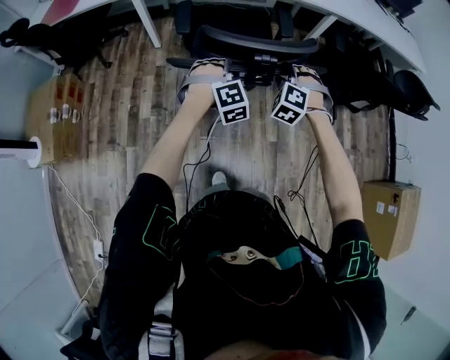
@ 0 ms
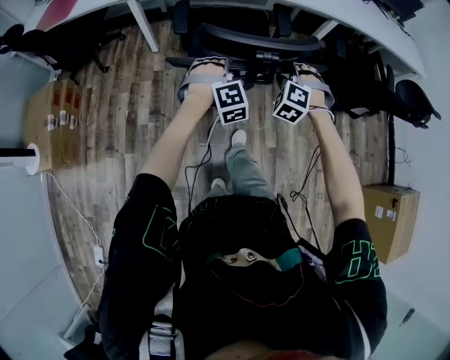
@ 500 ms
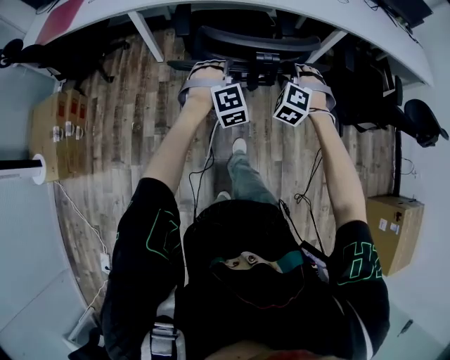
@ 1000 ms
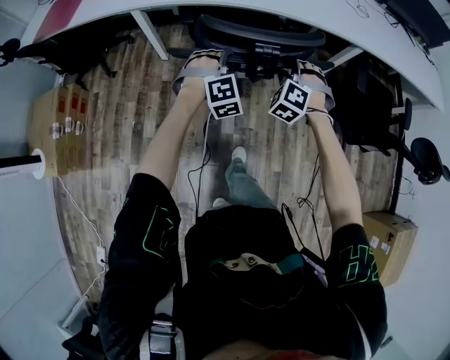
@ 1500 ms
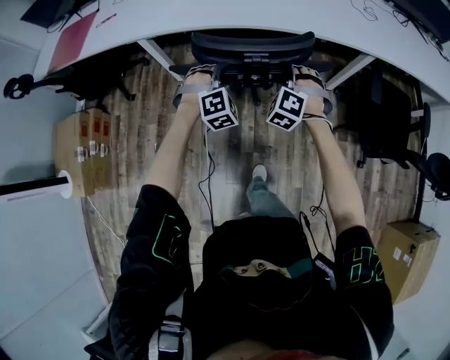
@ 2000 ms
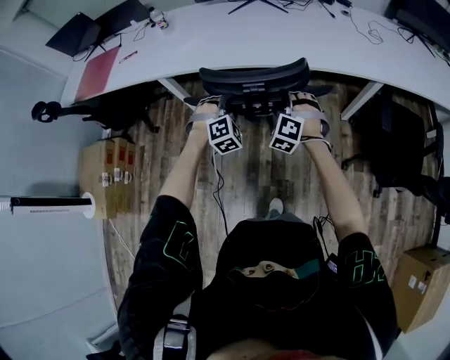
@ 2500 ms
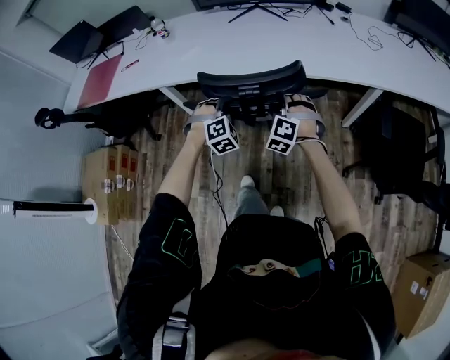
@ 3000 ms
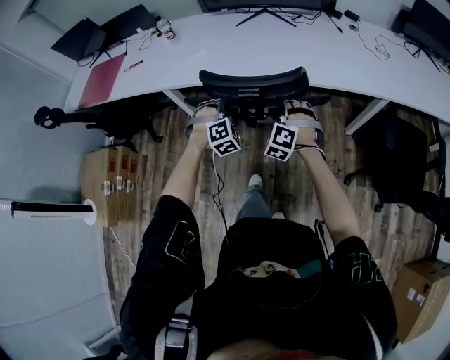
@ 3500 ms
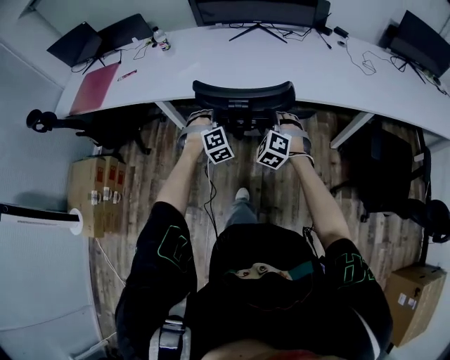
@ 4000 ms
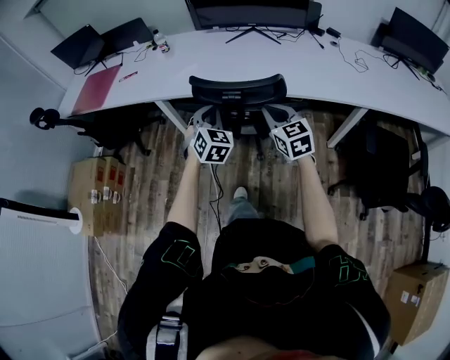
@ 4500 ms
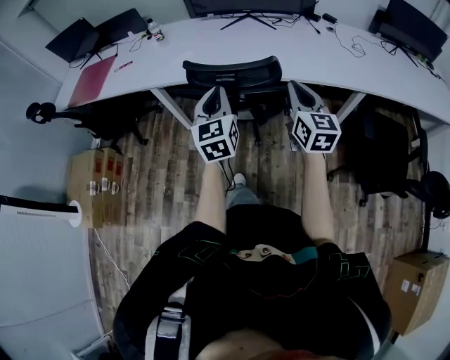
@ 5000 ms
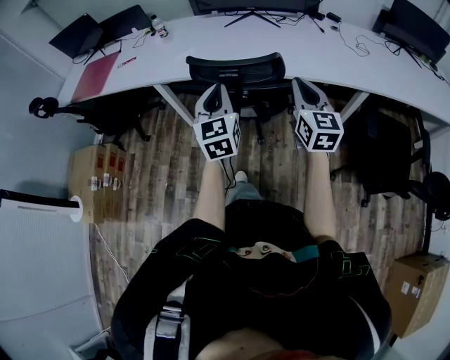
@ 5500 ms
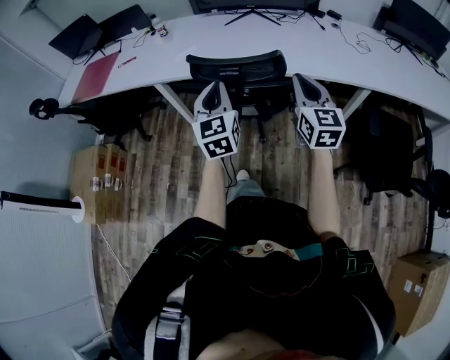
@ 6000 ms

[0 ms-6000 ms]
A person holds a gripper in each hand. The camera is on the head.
0 ms to 2000 ms: Both grippers move forward, some 35 cm.
2000 ms to 4000 ms: Both grippers move forward and to the left, about 10 cm.
4000 ms to 6000 ms: The left gripper heads upward and backward, covering about 25 cm, twists approximately 70 degrees counterclockwise, seen from behind, and closes its fingers; the right gripper moves upward, to the right and backward, roughly 25 cm, twists roughly 60 degrees clockwise, seen from behind, and closes its fingers.

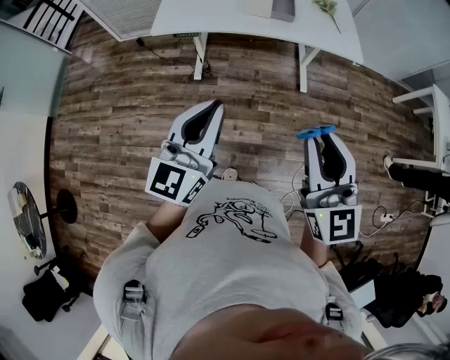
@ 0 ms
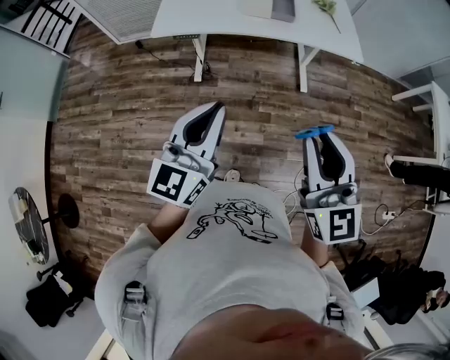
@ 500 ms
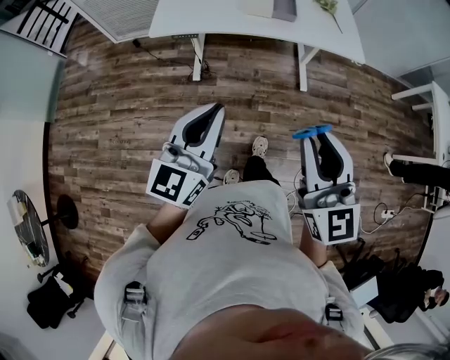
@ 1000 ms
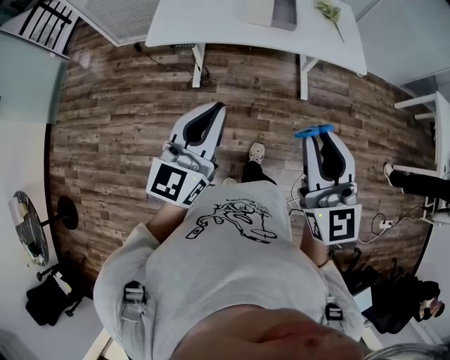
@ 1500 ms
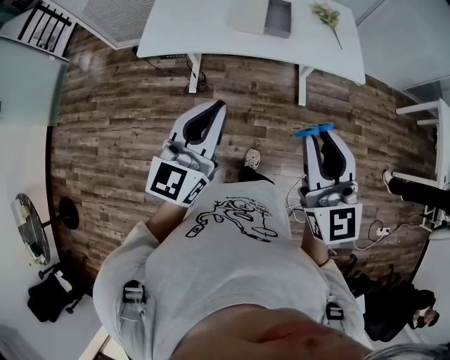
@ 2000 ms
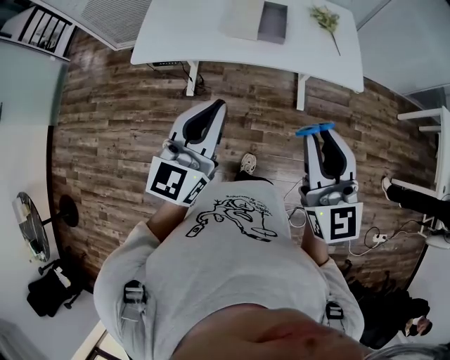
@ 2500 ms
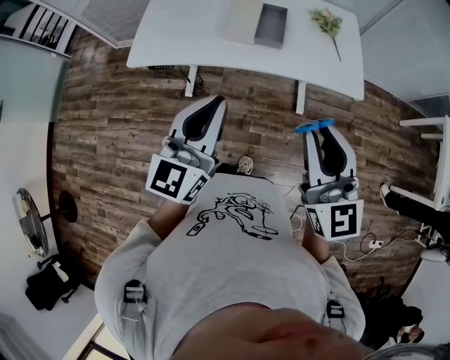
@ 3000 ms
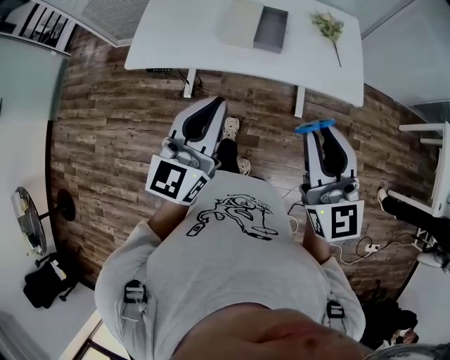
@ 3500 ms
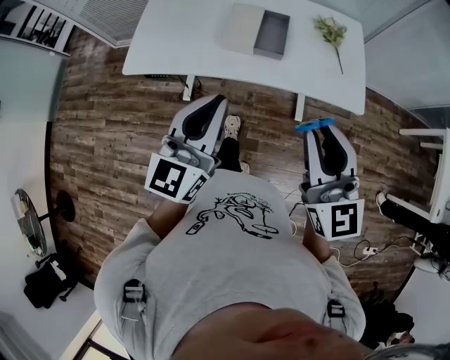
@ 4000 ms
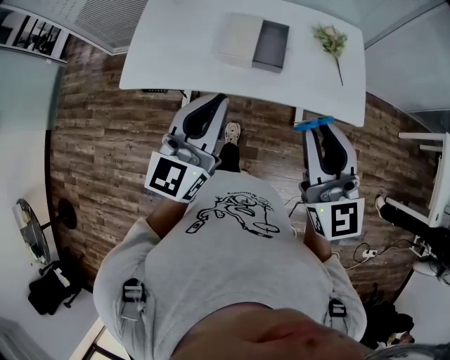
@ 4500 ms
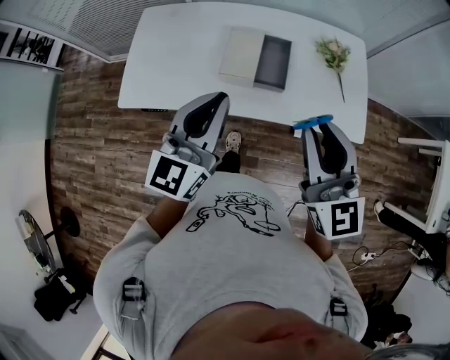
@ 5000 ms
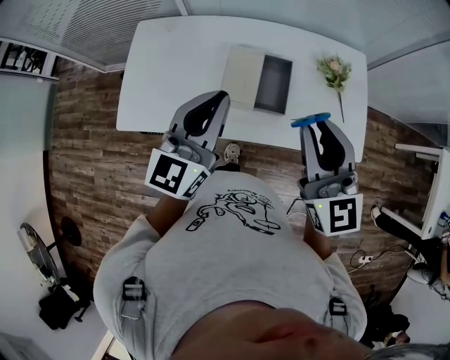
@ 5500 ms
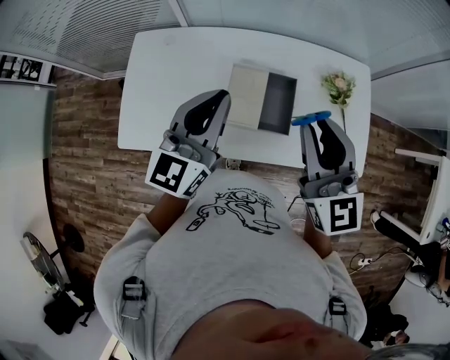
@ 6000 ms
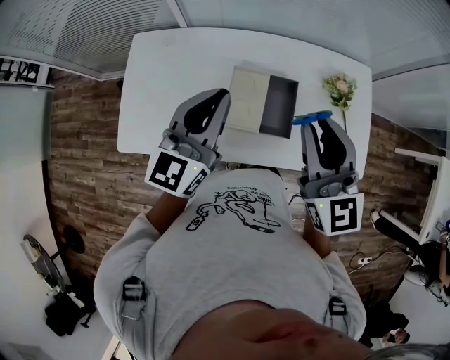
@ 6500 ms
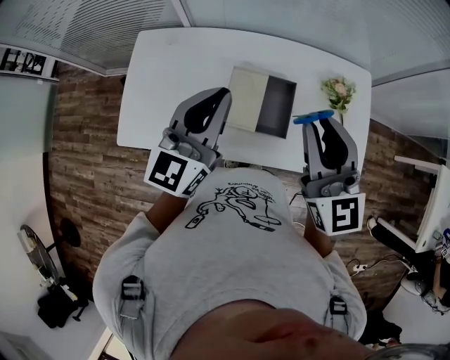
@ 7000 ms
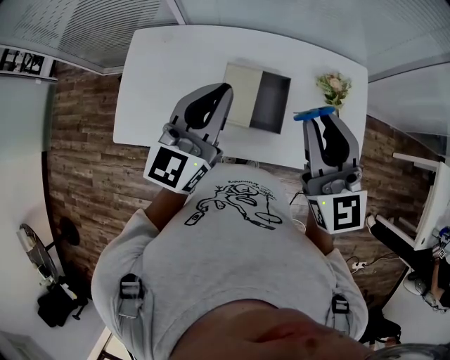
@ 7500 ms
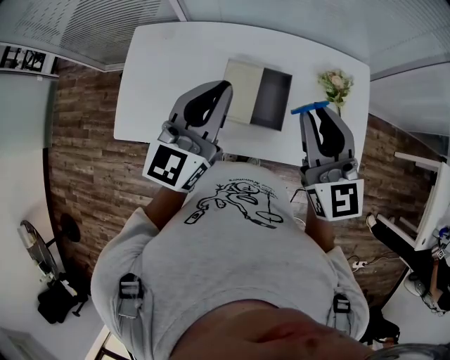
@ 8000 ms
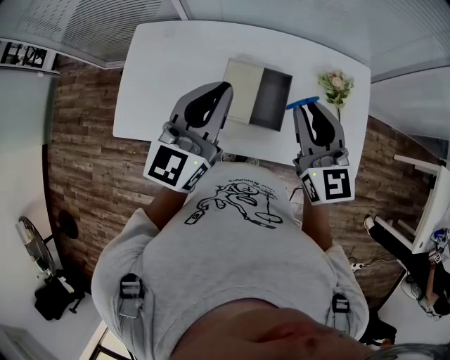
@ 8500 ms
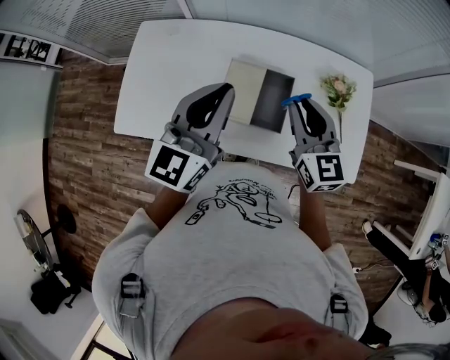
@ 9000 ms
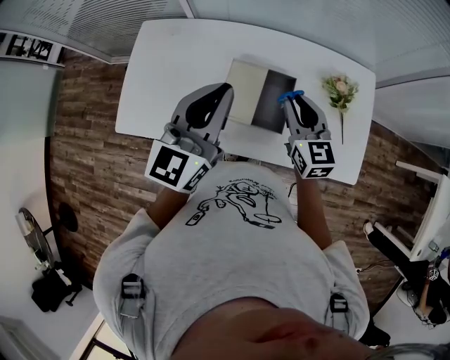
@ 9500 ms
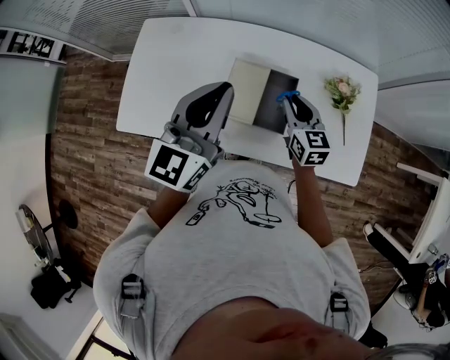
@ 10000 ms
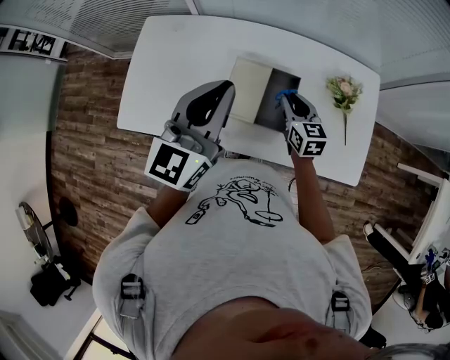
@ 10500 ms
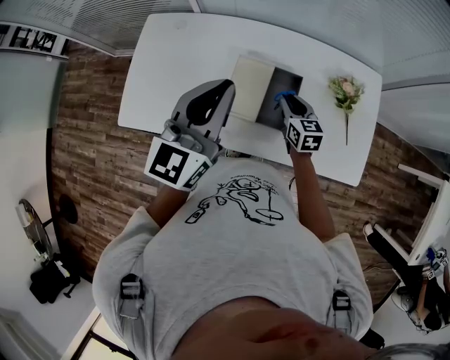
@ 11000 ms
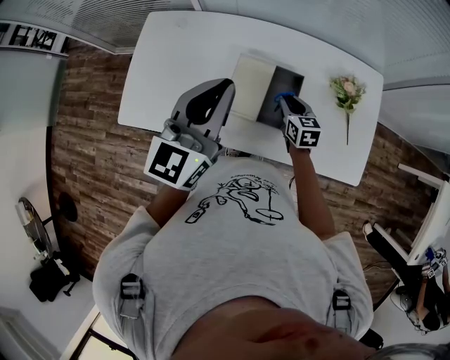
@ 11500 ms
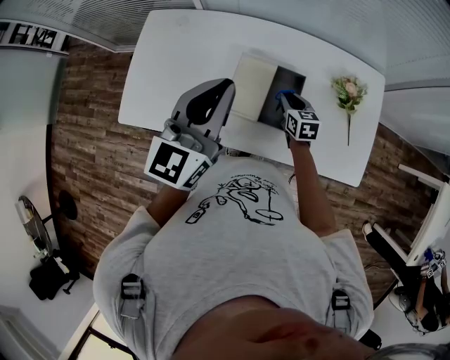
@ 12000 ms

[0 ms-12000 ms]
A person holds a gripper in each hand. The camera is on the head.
0 ms to 2000 ms: The grippers both shift forward by about 15 cm.
2000 ms to 4000 ms: Both grippers move forward and to the right, approximately 20 cm.
4000 ms to 6000 ms: The grippers both shift forward by approximately 35 cm.
6000 ms to 8000 ms: The grippers stay close to where they were, moving slightly.
8000 ms to 10000 ms: The right gripper is displaced downward and forward by about 25 cm, and changes its angle by roughly 20 degrees.
10000 ms to 12000 ms: The right gripper moves downward, about 15 cm.

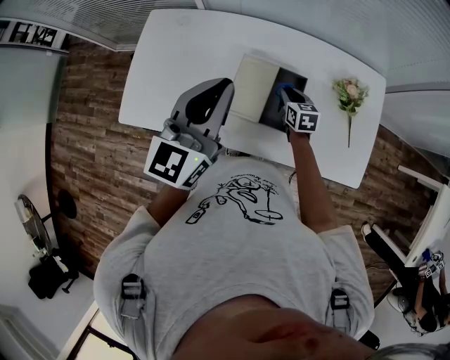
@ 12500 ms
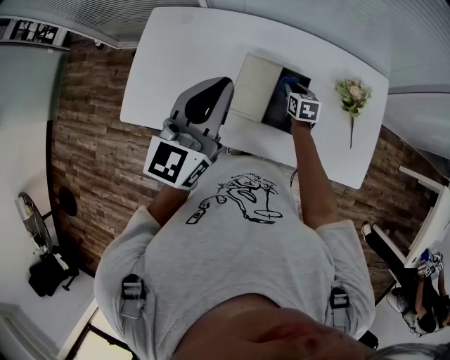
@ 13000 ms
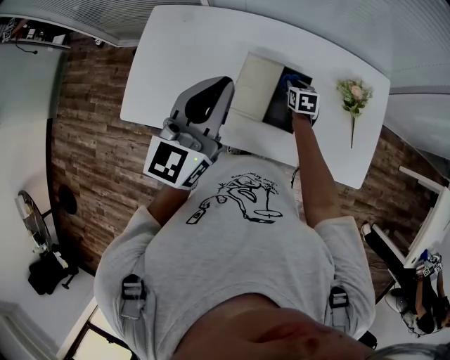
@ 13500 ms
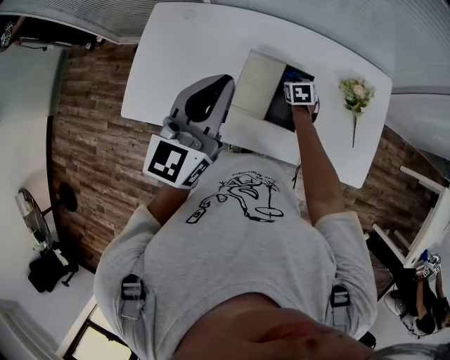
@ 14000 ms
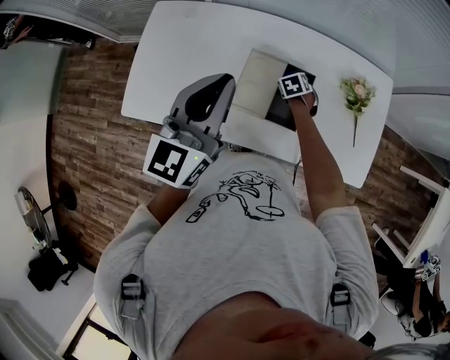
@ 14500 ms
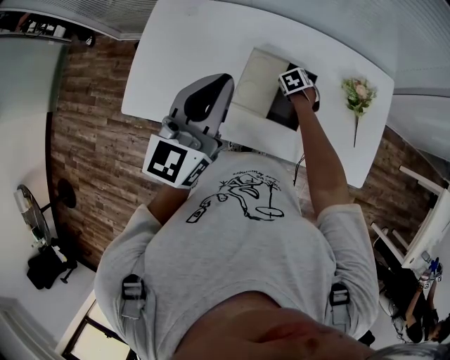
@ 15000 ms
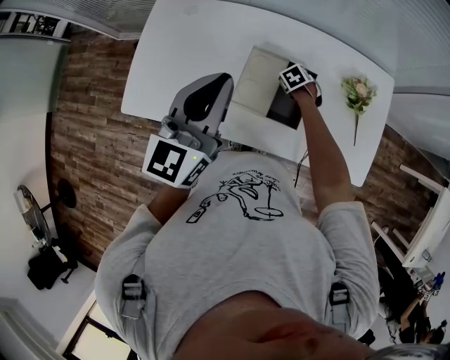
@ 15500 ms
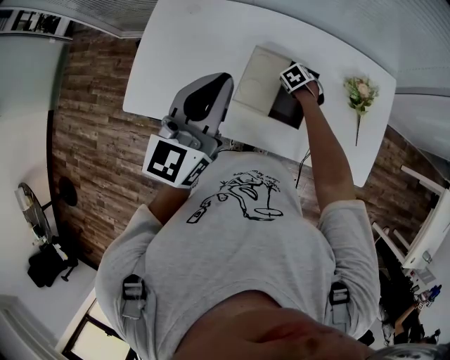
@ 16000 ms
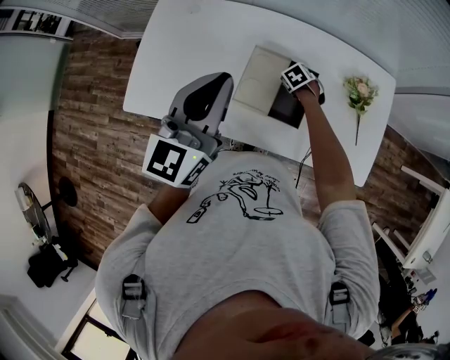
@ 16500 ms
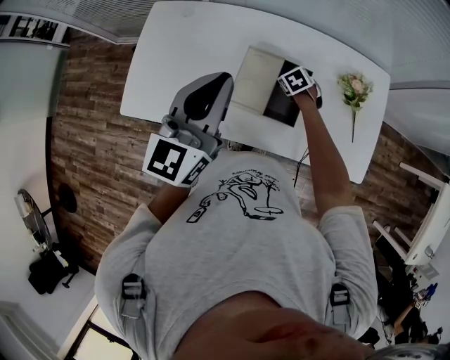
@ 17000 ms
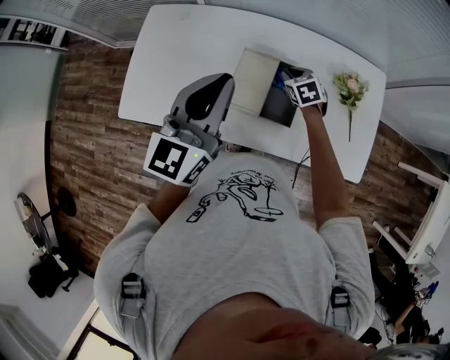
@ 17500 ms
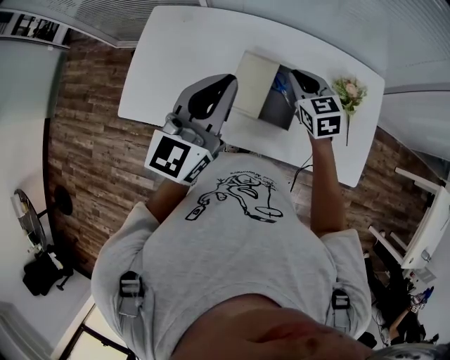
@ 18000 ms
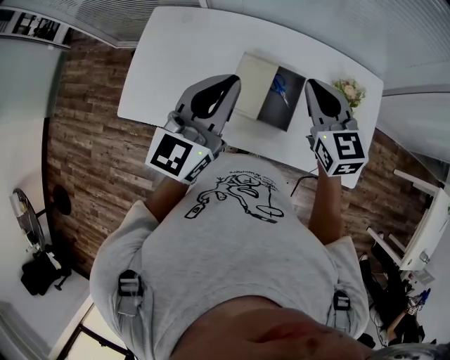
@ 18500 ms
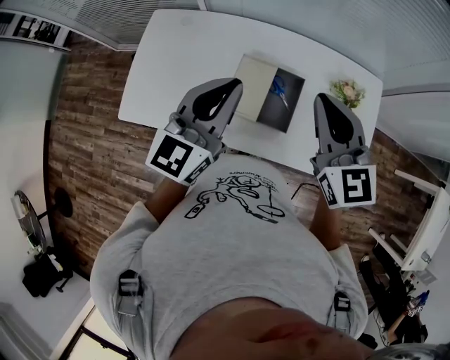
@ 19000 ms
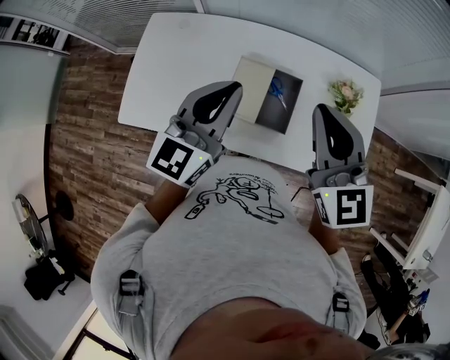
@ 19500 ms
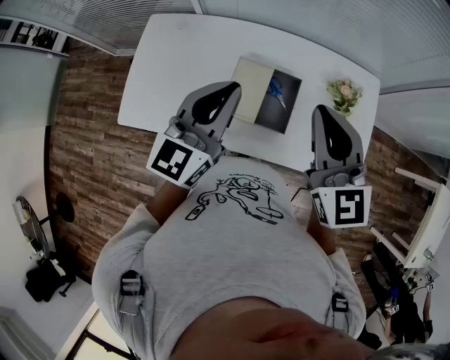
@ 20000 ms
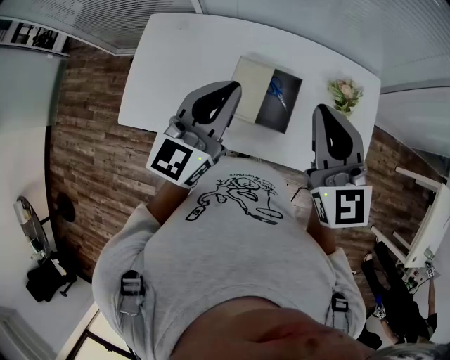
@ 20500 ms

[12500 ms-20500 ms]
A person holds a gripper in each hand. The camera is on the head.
12500 ms to 14500 ms: The right gripper travels downward by about 10 cm, and swivels about 30 degrees.
14500 ms to 16500 ms: The grippers move only a little.
16500 ms to 18500 ms: The right gripper shifts roughly 40 cm upward, points its fingers approximately 50 degrees further upward, and closes up.
18500 ms to 20500 ms: The right gripper moves upward and backward, some 10 cm.

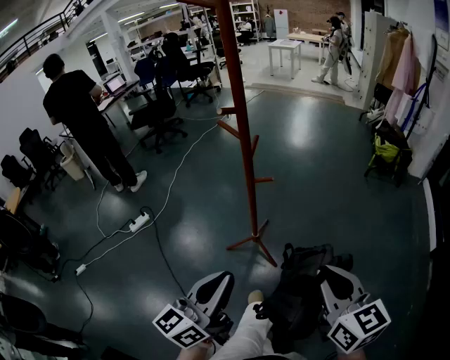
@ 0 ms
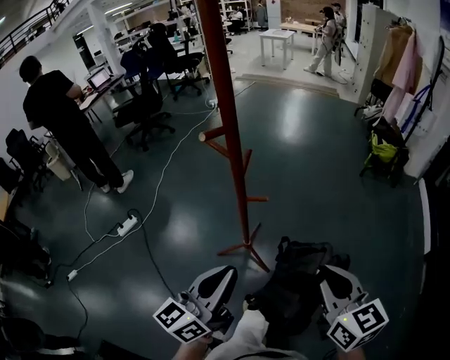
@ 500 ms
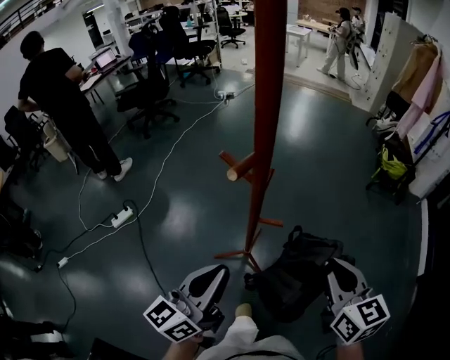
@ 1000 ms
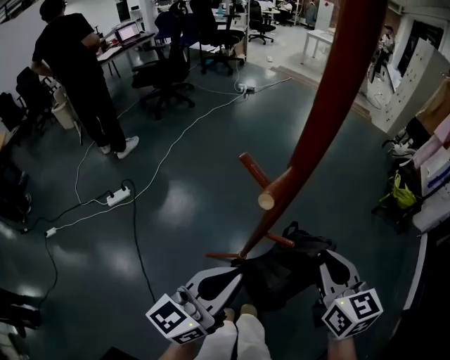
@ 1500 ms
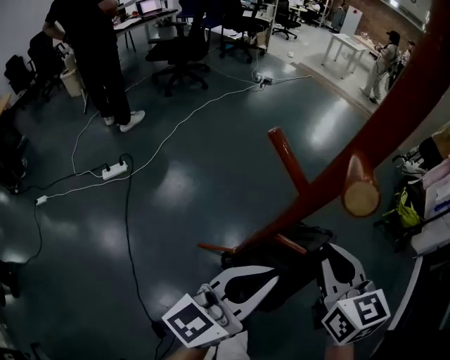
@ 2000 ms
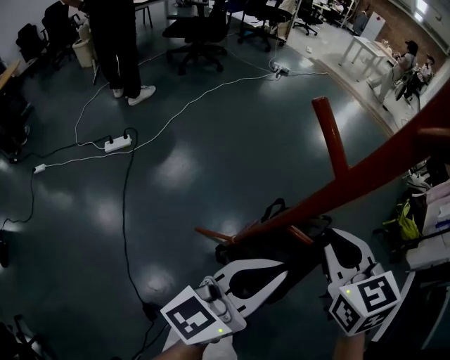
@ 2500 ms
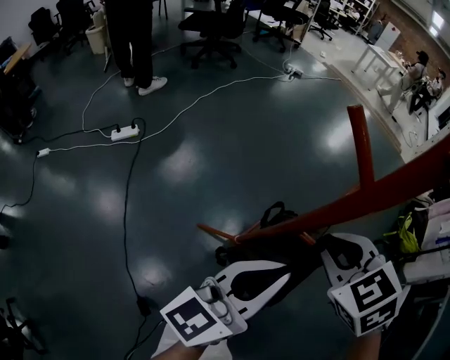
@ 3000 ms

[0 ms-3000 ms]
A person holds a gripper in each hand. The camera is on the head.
0 ms to 1500 ms: The two grippers go approximately 30 cm forward.
1500 ms to 3000 ms: The right gripper shifts some 15 cm downward, to the left and forward, and tips its fingers downward by about 30 degrees; the left gripper shifts roughly 5 cm downward.
